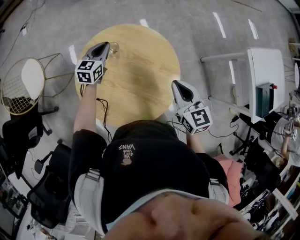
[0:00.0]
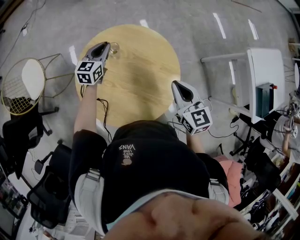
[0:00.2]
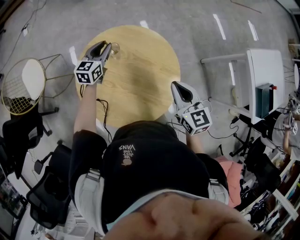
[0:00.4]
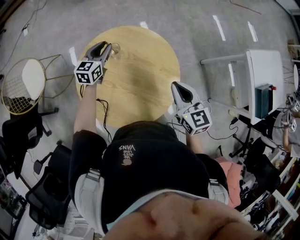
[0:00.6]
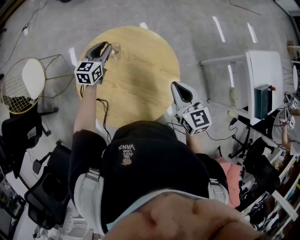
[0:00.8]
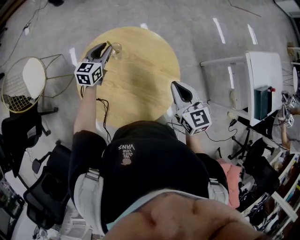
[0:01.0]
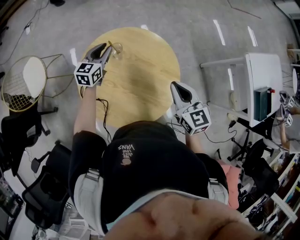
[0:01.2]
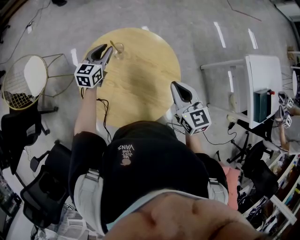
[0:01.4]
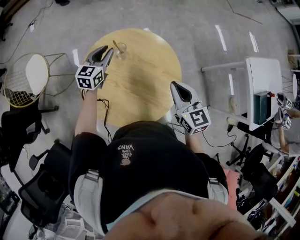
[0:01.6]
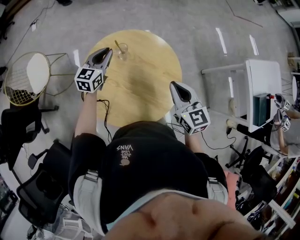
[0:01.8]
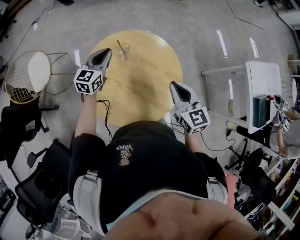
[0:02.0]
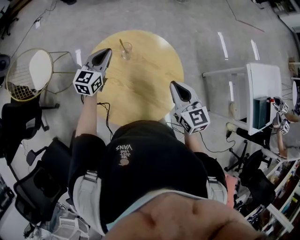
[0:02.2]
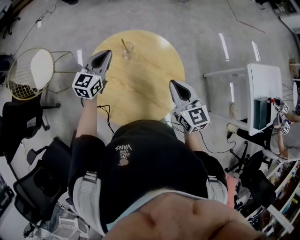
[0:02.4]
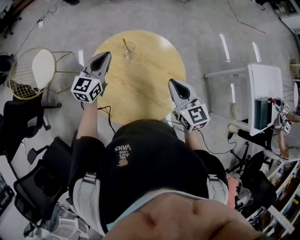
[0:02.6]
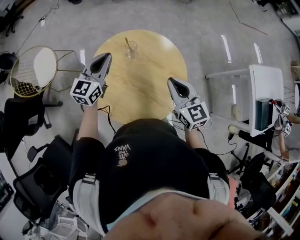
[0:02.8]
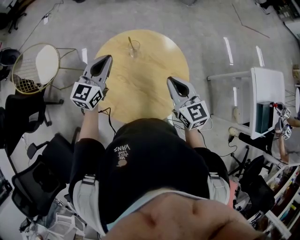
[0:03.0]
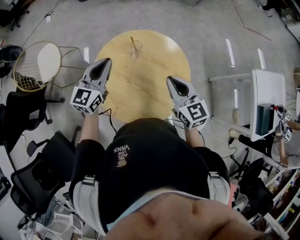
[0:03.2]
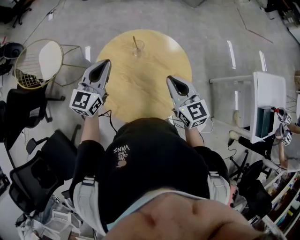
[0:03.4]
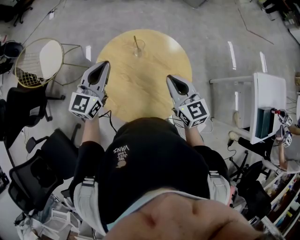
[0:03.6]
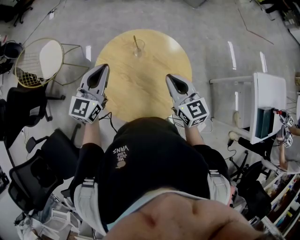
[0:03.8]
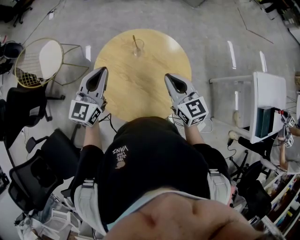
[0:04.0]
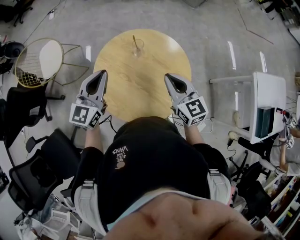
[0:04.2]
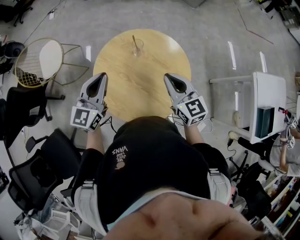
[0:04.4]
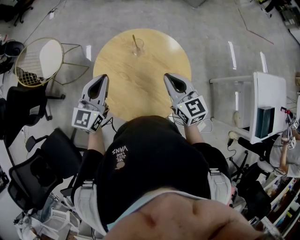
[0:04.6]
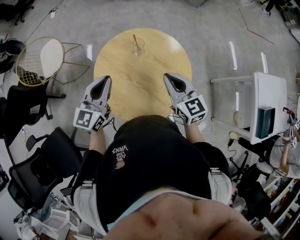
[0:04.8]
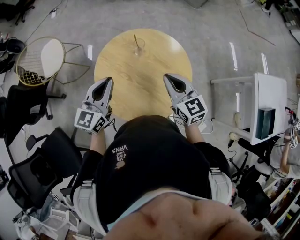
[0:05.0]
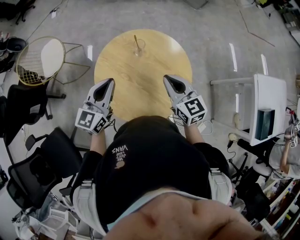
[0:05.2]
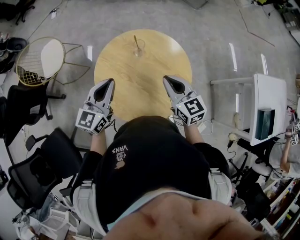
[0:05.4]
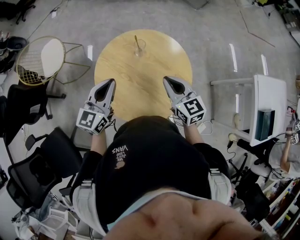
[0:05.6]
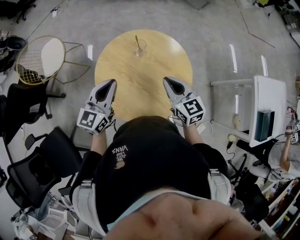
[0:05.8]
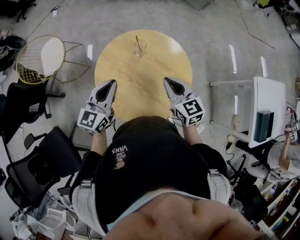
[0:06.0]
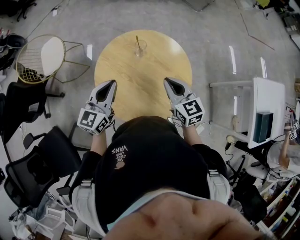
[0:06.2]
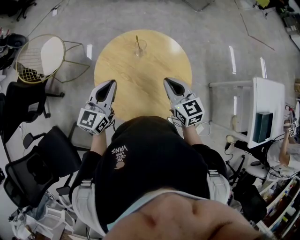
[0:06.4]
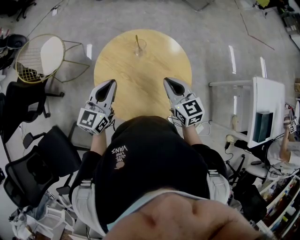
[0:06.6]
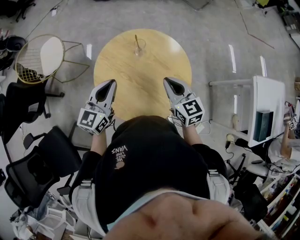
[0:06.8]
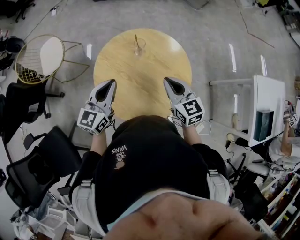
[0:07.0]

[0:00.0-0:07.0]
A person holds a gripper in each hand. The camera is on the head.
0:00.0 to 0:01.4: The left gripper opens its fingers.
0:01.4 to 0:02.8: The left gripper is displaced upward and backward by some 15 cm, and closes up. Meanwhile the right gripper moves to the left, some 5 cm.
0:02.8 to 0:04.2: The left gripper shifts roughly 10 cm backward.
0:04.2 to 0:05.6: The grippers make only small movements.
0:05.6 to 0:07.0: The two grippers keep their place.

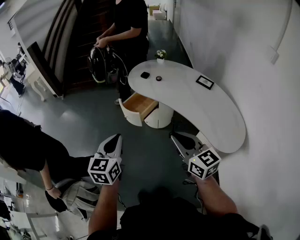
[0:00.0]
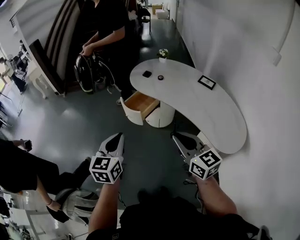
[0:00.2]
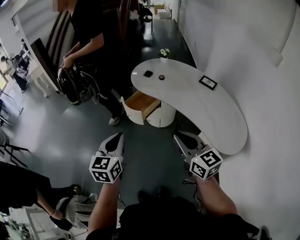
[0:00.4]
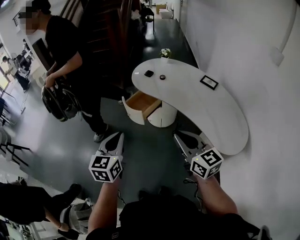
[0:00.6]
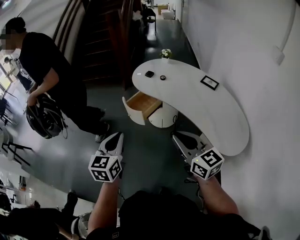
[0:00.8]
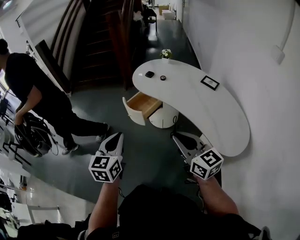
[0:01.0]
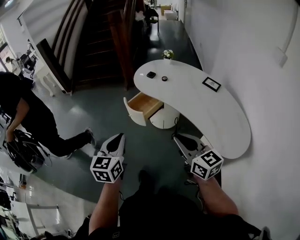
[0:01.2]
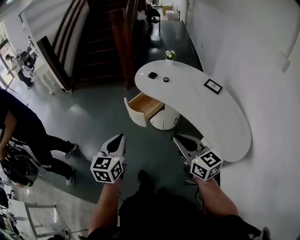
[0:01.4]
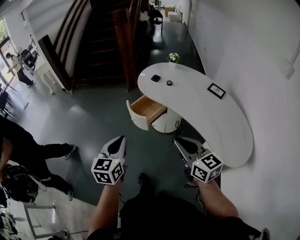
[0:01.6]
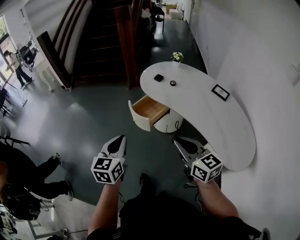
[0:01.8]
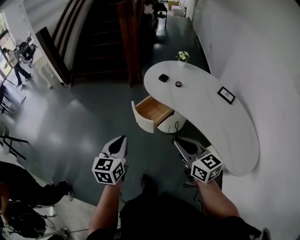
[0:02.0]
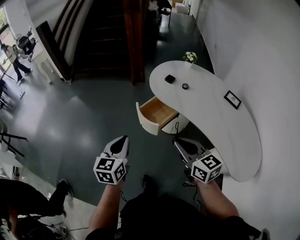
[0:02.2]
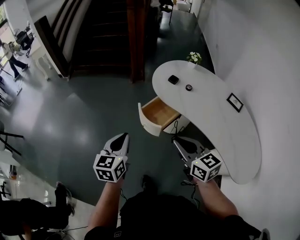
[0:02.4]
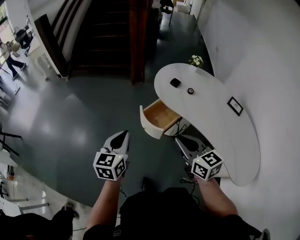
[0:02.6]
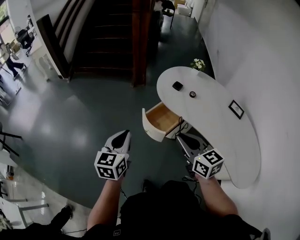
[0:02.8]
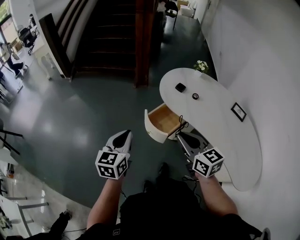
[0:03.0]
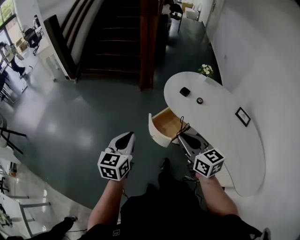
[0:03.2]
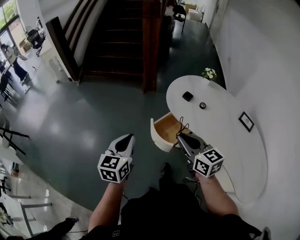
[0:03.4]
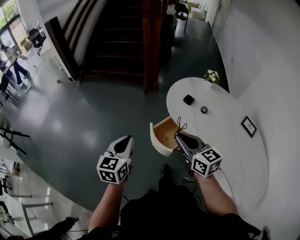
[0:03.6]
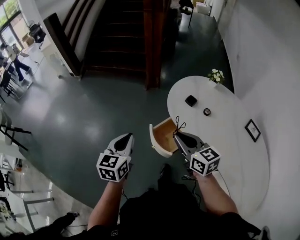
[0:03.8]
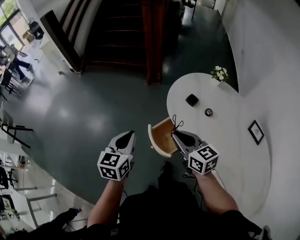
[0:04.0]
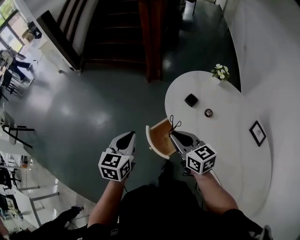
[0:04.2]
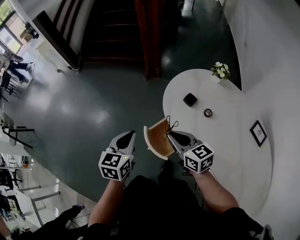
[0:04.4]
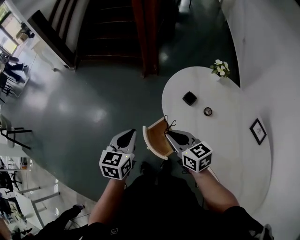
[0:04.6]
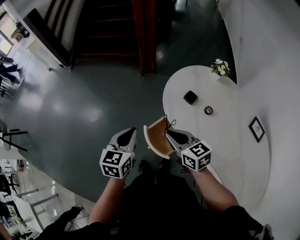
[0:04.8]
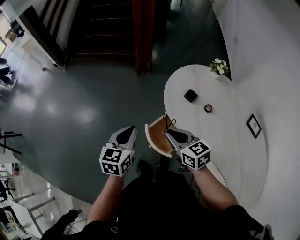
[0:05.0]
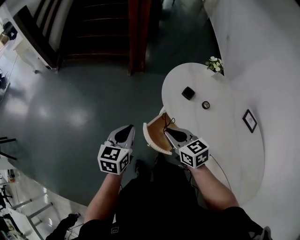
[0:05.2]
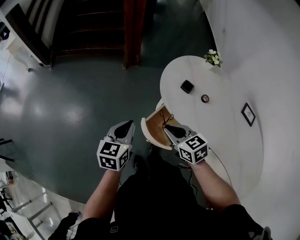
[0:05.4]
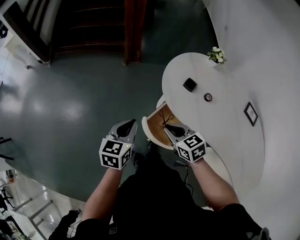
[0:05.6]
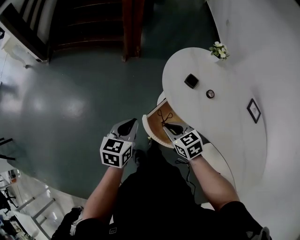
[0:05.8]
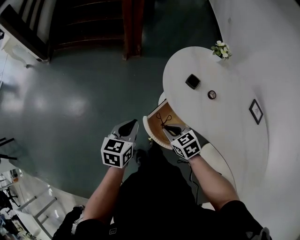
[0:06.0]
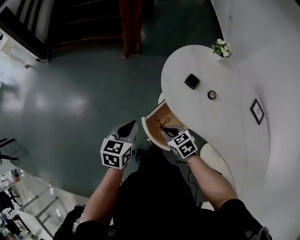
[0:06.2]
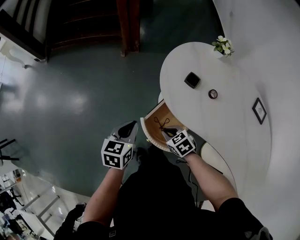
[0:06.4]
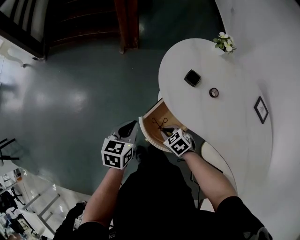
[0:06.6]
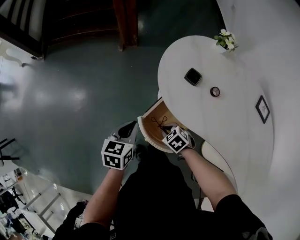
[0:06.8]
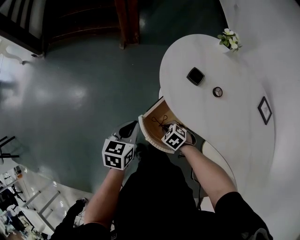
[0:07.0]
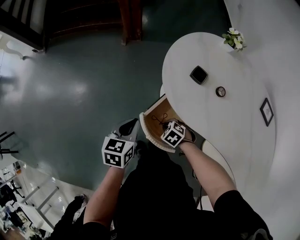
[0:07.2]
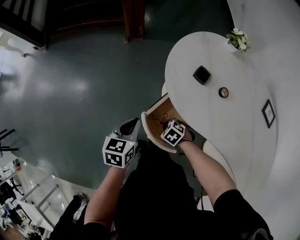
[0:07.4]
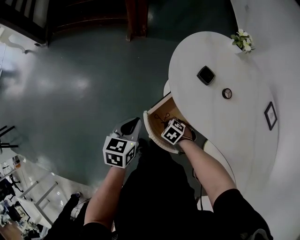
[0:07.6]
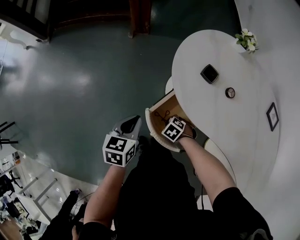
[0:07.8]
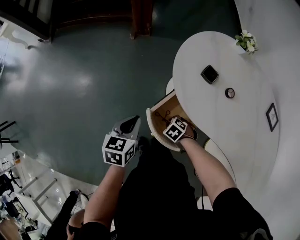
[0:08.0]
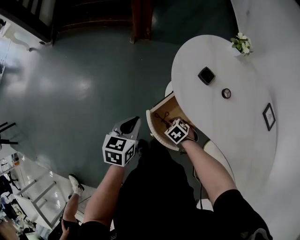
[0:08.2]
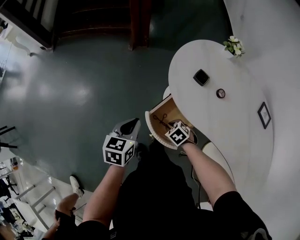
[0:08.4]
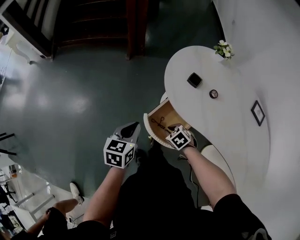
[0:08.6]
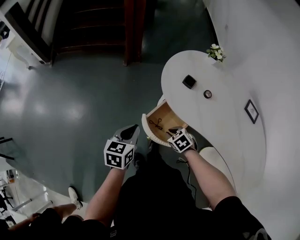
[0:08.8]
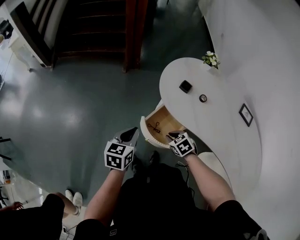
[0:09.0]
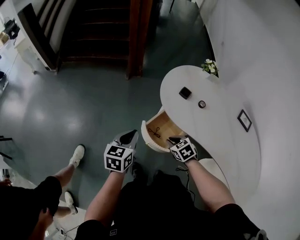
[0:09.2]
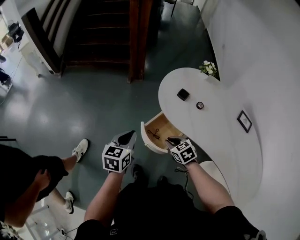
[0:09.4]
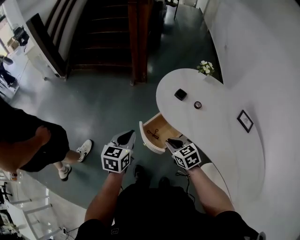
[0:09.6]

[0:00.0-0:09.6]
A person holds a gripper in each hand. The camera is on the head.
0:00.0 to 0:01.6: The right gripper ends up about 5 cm from where it was.
0:01.6 to 0:03.2: The grippers both shift forward and to the left by roughly 25 cm.
0:03.2 to 0:04.8: The left gripper travels forward and to the right by roughly 20 cm. Meanwhile the right gripper is displaced forward and downward by some 25 cm.
0:04.8 to 0:06.4: The left gripper travels downward by about 15 cm; the right gripper moves downward, roughly 20 cm, and tips its fingers downward by approximately 30 degrees.
0:06.4 to 0:08.0: The left gripper is displaced downward by about 5 cm; the right gripper heads downward, covering approximately 15 cm, and changes its angle by approximately 30 degrees.
0:08.0 to 0:09.6: The left gripper shifts roughly 15 cm upward; the right gripper shifts some 30 cm upward, and tilts its fingers roughly 40 degrees upward.

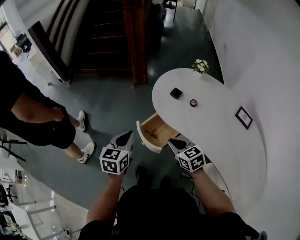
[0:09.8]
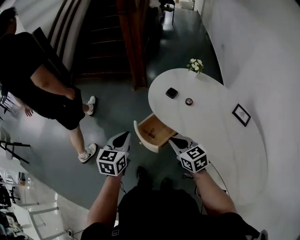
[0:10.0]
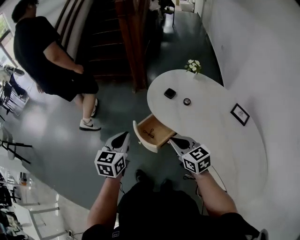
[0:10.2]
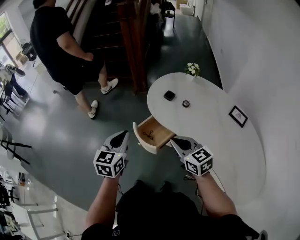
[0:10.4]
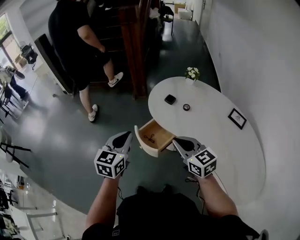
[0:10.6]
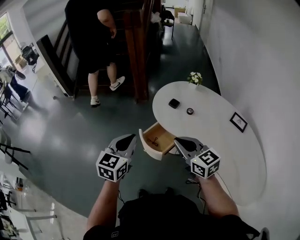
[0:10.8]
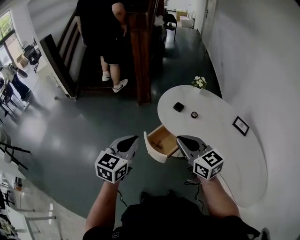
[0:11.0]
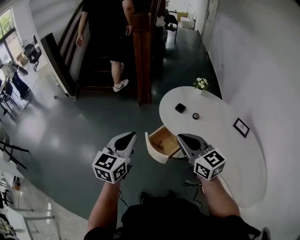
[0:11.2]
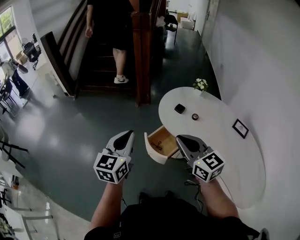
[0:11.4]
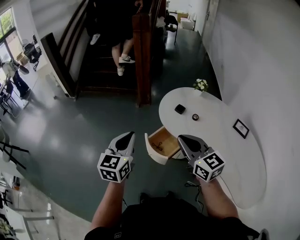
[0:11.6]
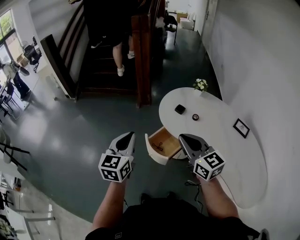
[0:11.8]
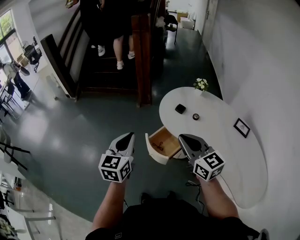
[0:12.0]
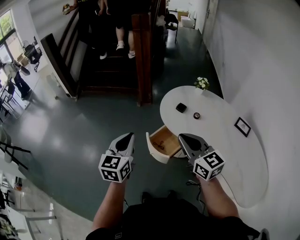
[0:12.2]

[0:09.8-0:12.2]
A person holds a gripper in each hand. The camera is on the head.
0:09.8 to 0:11.0: The left gripper travels upward and backward by roughly 15 cm; the right gripper travels upward by some 20 cm, and rotates approximately 20 degrees.
0:11.0 to 0:12.2: The grippers move only a little.

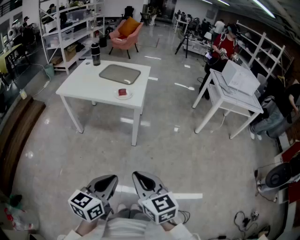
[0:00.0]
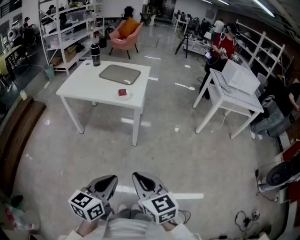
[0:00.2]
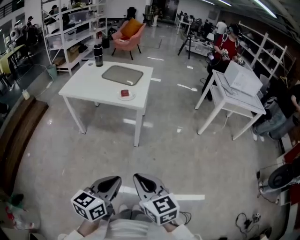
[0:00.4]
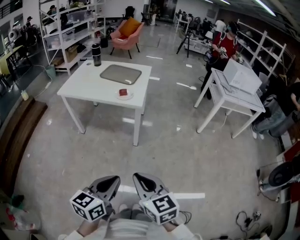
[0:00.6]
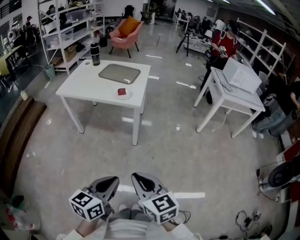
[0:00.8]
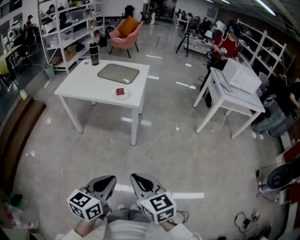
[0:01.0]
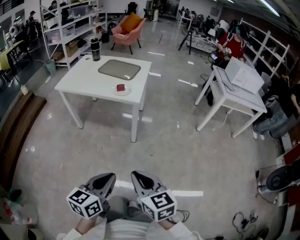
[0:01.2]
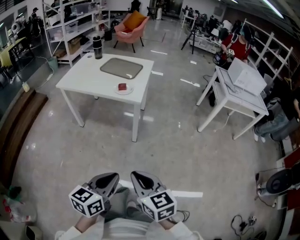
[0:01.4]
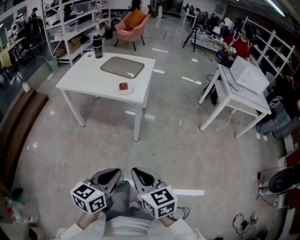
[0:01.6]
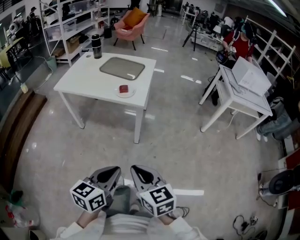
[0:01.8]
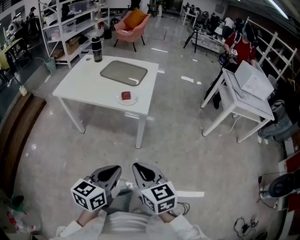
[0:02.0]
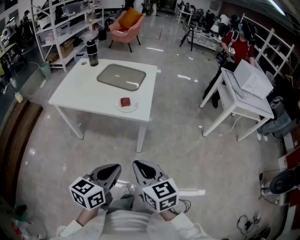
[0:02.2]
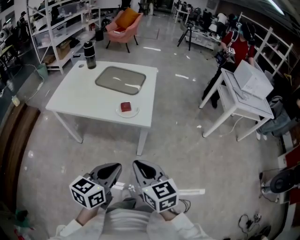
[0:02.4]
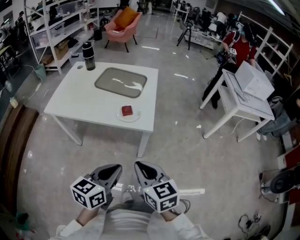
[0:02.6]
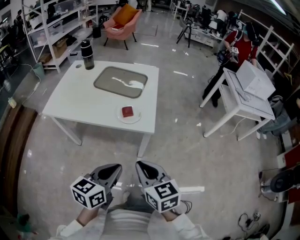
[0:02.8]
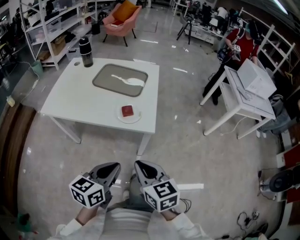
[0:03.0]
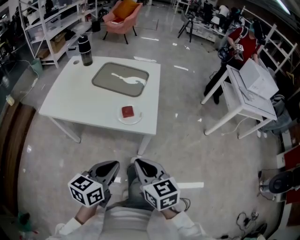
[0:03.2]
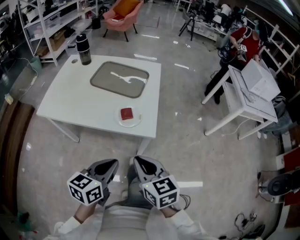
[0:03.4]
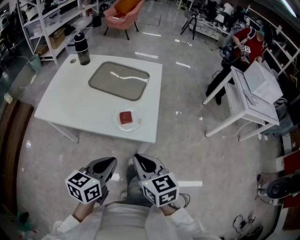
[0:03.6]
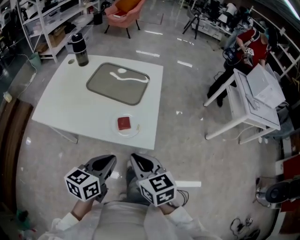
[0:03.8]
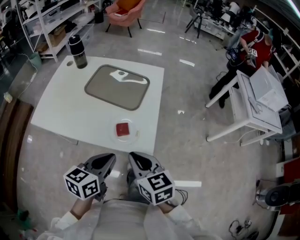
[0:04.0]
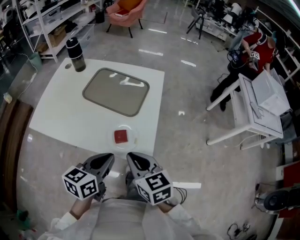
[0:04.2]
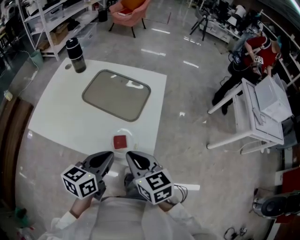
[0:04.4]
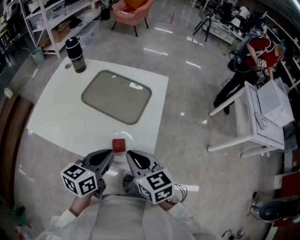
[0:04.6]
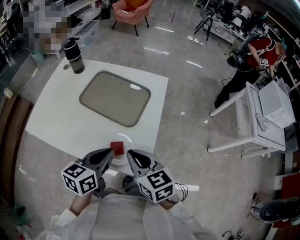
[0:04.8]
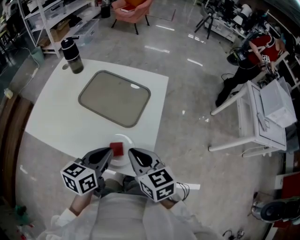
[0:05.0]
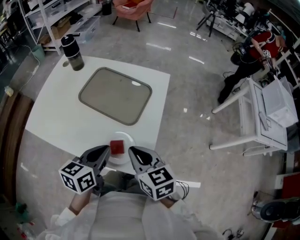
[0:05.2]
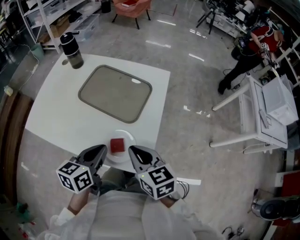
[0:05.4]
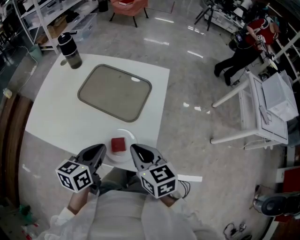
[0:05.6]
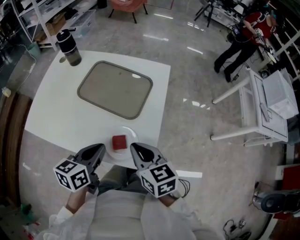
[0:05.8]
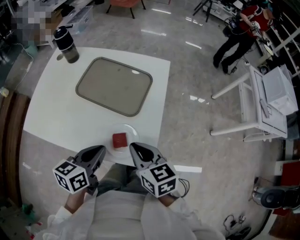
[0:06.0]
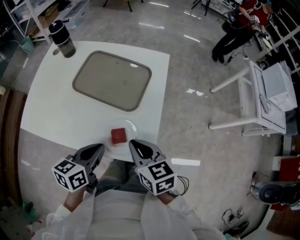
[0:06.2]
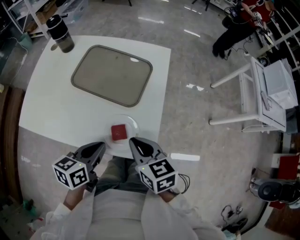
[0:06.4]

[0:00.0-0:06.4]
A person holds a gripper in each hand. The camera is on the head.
0:00.0 to 0:01.6: The grippers both shift forward by roughly 5 cm.
0:01.6 to 0:03.2: The right gripper travels forward by some 35 cm. The left gripper goes roughly 35 cm forward and to the left.
0:03.2 to 0:04.8: The two grippers go about 30 cm forward.
0:04.8 to 0:06.4: Both grippers move downward, roughly 5 cm.
